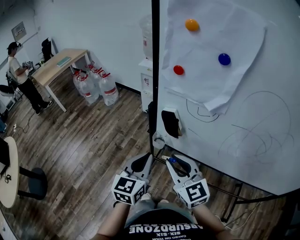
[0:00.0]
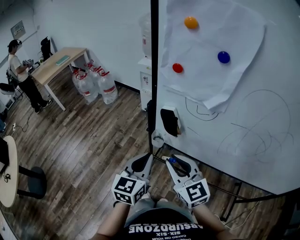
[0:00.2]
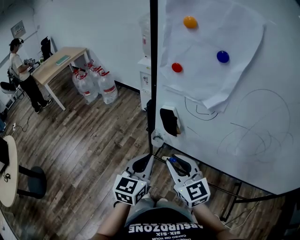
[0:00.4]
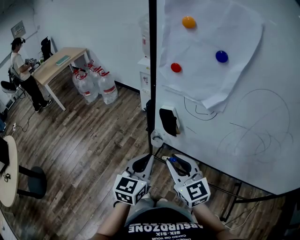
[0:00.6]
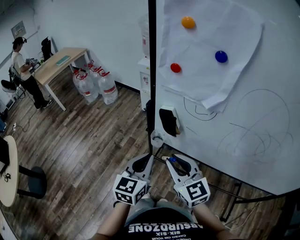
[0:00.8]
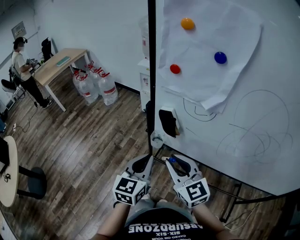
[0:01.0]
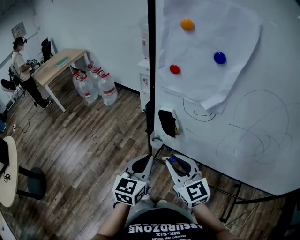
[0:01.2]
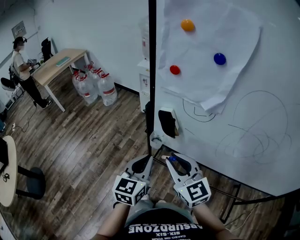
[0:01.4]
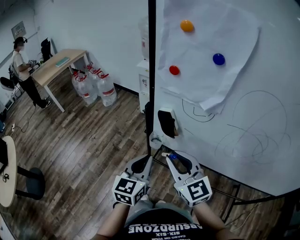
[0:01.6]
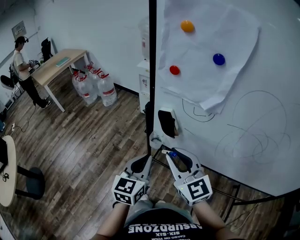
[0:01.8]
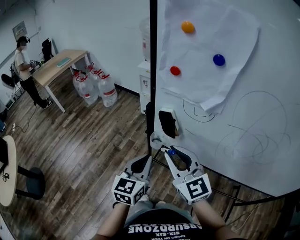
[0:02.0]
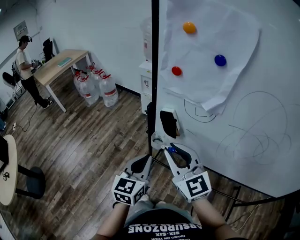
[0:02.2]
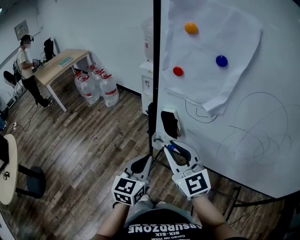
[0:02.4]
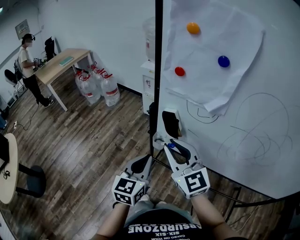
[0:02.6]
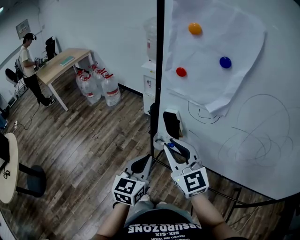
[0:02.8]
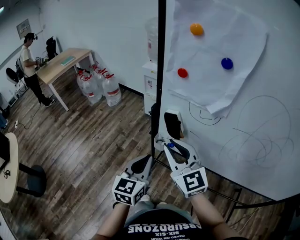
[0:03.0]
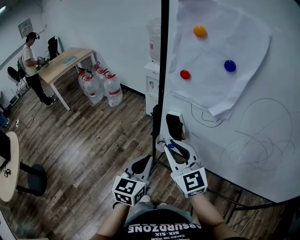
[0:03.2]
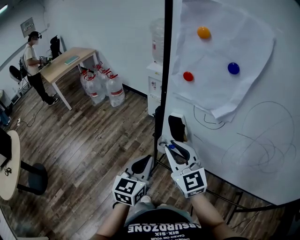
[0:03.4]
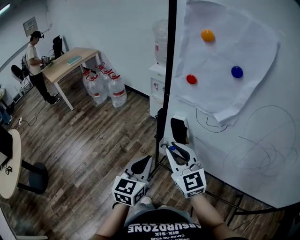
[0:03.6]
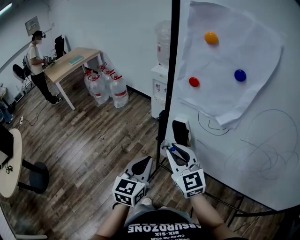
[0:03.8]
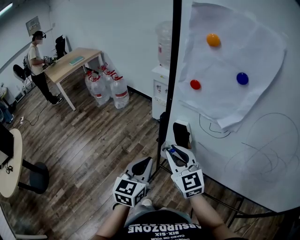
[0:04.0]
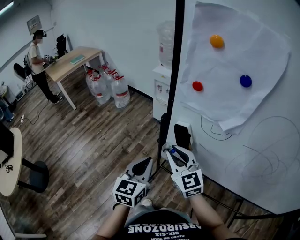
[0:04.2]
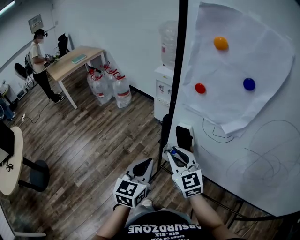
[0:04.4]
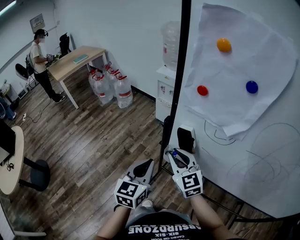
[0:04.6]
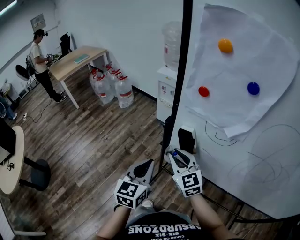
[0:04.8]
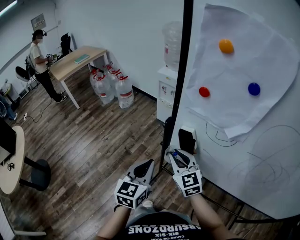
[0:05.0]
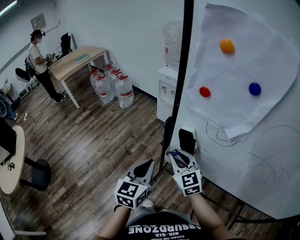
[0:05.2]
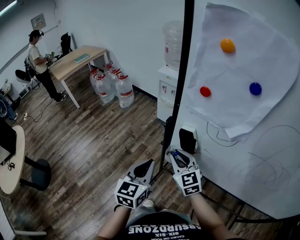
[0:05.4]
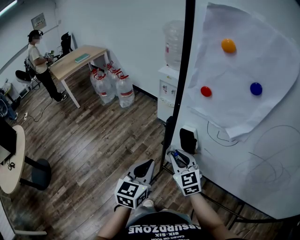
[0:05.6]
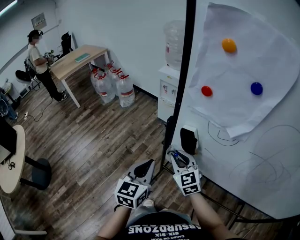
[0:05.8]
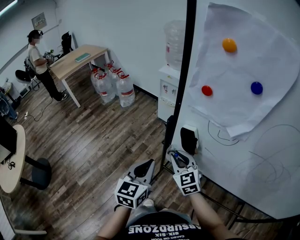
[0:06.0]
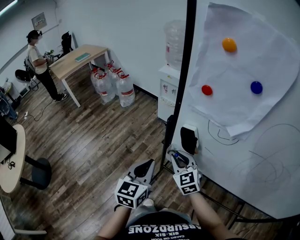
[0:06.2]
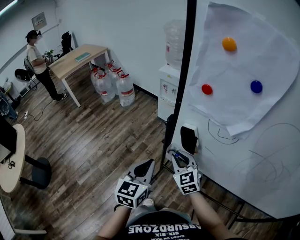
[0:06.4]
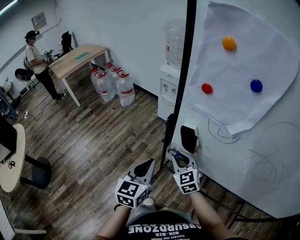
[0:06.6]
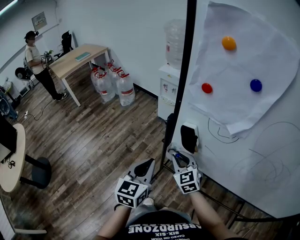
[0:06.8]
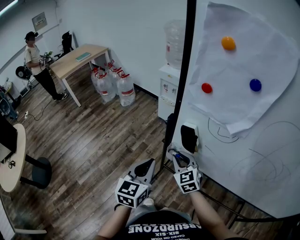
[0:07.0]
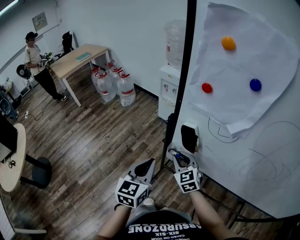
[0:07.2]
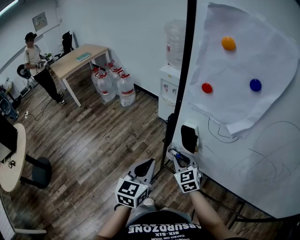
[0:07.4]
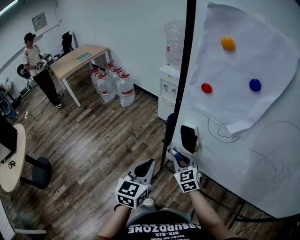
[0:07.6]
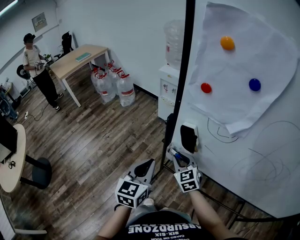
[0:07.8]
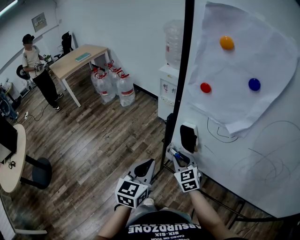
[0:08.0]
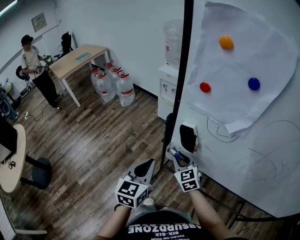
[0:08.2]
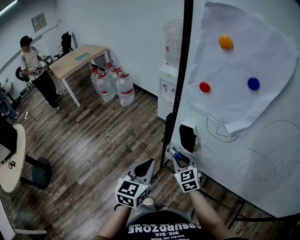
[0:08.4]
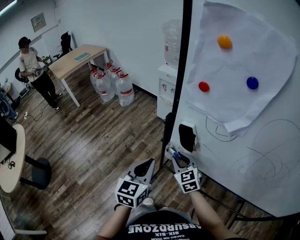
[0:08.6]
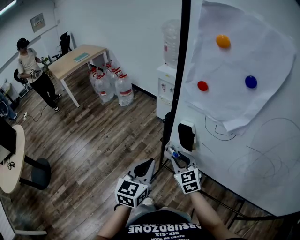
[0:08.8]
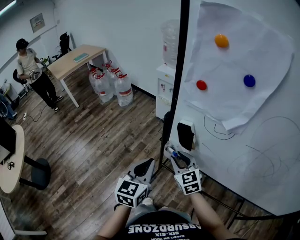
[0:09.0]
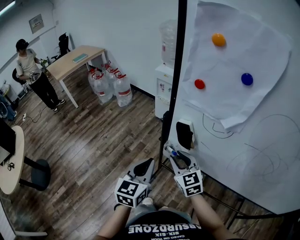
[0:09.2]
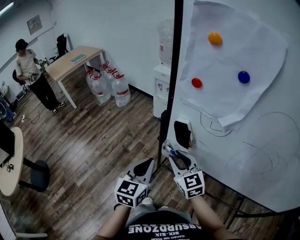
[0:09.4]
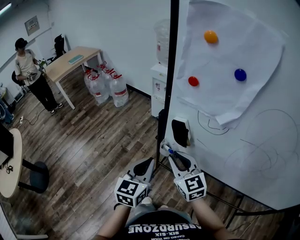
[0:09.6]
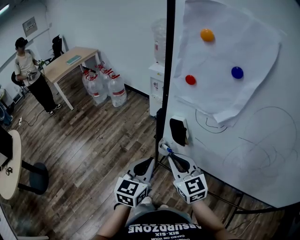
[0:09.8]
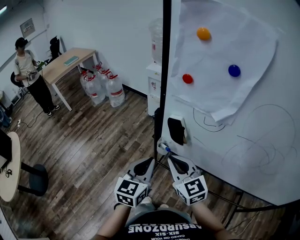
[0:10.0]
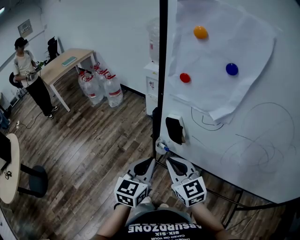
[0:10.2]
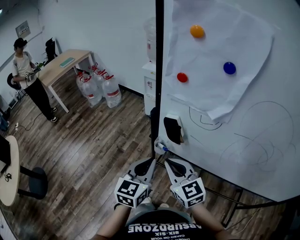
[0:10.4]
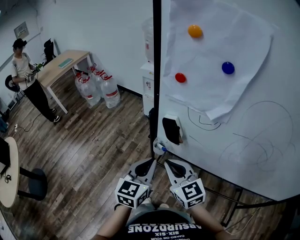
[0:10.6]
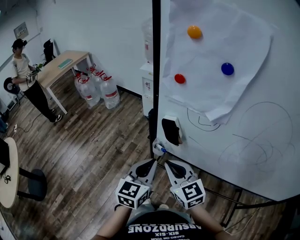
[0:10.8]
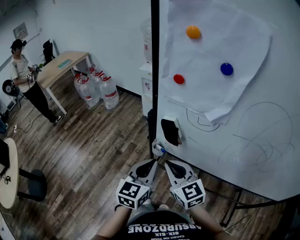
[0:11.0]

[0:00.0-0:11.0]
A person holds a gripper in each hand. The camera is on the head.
0:00.0 to 0:01.6: There are only small adjustments of the grippers.
0:01.6 to 0:03.2: The right gripper changes place by roughly 5 cm.
0:03.2 to 0:04.8: The left gripper shifts by roughly 5 cm. The right gripper is displaced downward and forward by approximately 10 cm.
0:04.8 to 0:06.2: The right gripper moves downward, some 5 cm.
0:06.2 to 0:07.8: The grippers move only a little.
0:07.8 to 0:09.4: The right gripper shifts roughly 10 cm upward.
0:09.4 to 0:11.0: The right gripper shifts by about 5 cm, and closes.

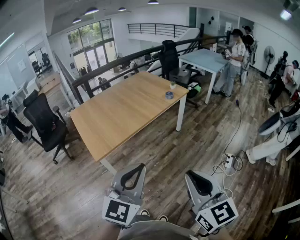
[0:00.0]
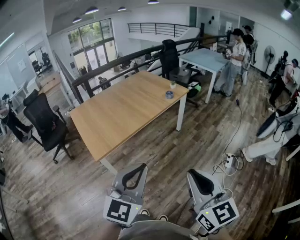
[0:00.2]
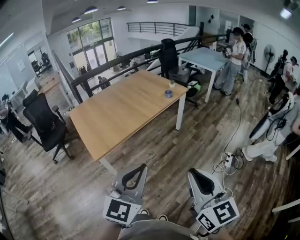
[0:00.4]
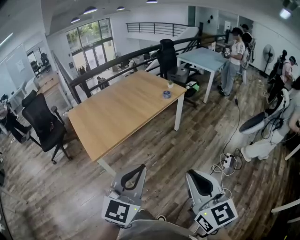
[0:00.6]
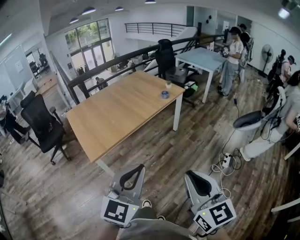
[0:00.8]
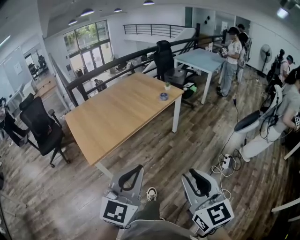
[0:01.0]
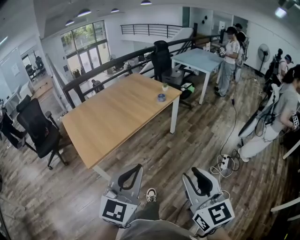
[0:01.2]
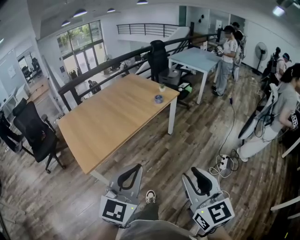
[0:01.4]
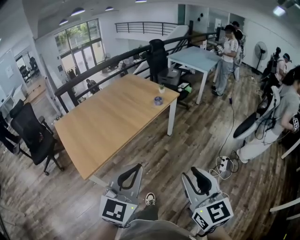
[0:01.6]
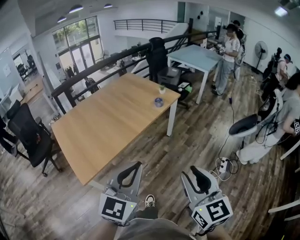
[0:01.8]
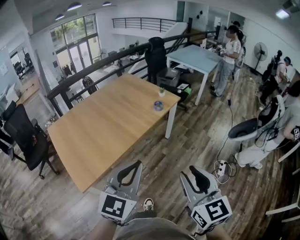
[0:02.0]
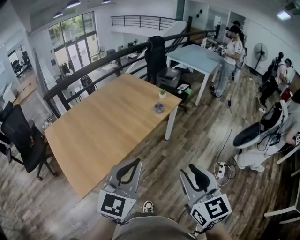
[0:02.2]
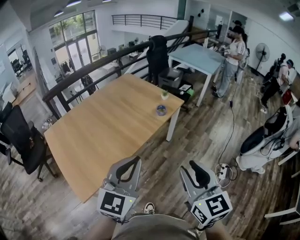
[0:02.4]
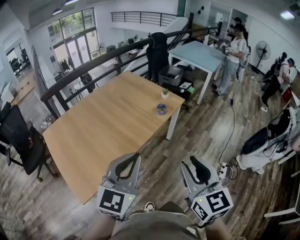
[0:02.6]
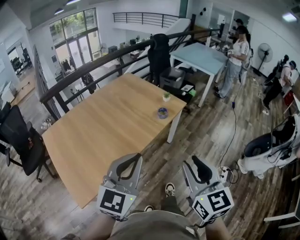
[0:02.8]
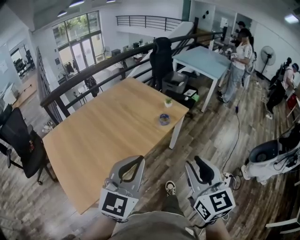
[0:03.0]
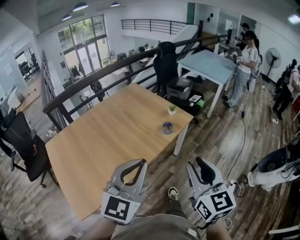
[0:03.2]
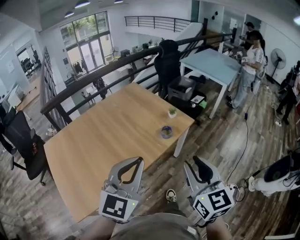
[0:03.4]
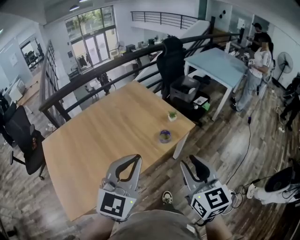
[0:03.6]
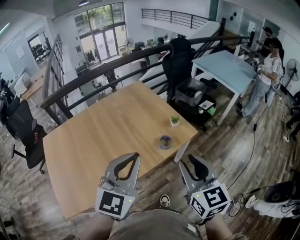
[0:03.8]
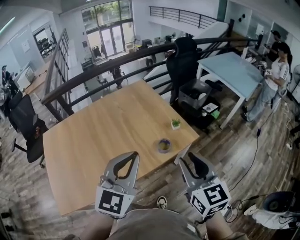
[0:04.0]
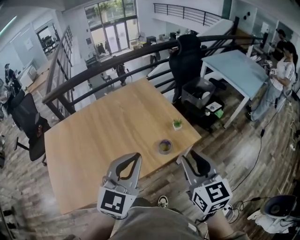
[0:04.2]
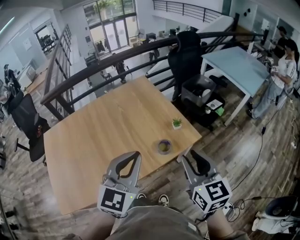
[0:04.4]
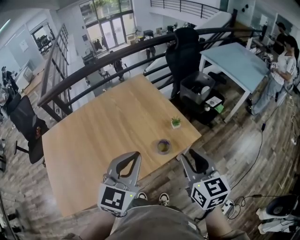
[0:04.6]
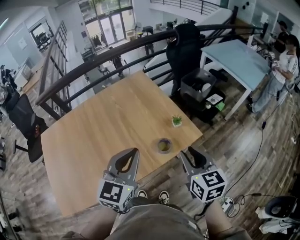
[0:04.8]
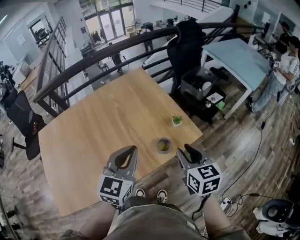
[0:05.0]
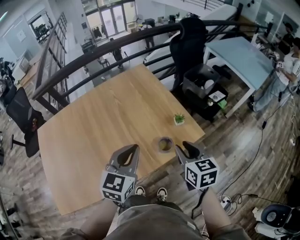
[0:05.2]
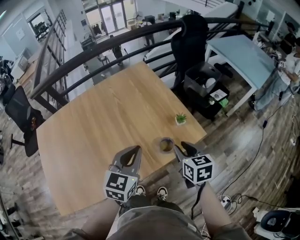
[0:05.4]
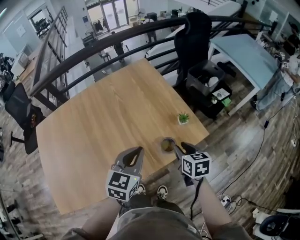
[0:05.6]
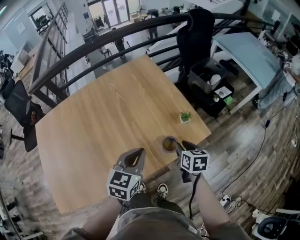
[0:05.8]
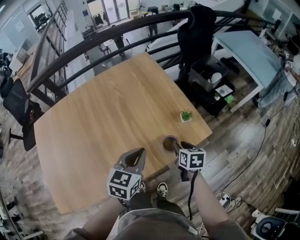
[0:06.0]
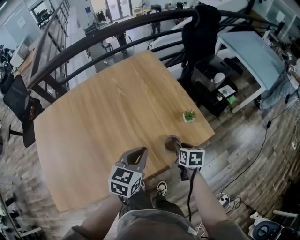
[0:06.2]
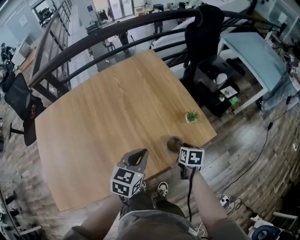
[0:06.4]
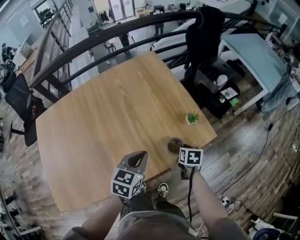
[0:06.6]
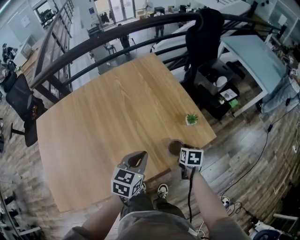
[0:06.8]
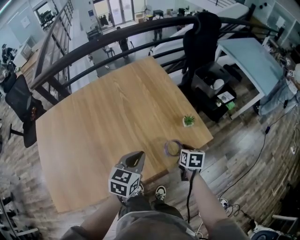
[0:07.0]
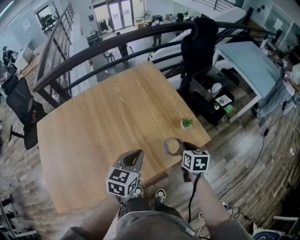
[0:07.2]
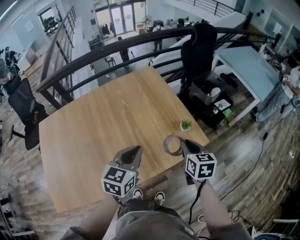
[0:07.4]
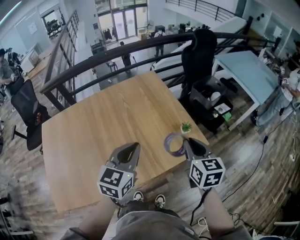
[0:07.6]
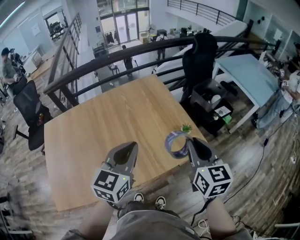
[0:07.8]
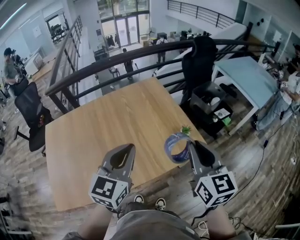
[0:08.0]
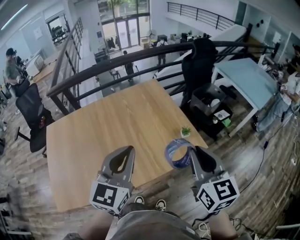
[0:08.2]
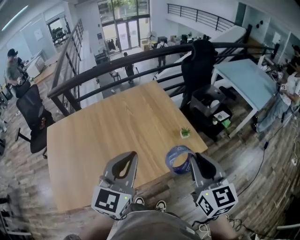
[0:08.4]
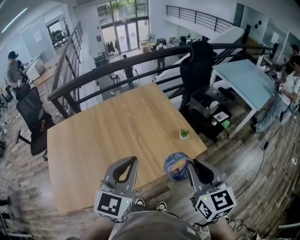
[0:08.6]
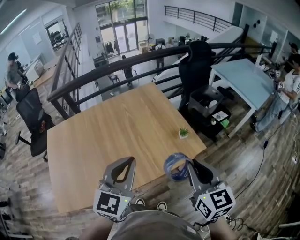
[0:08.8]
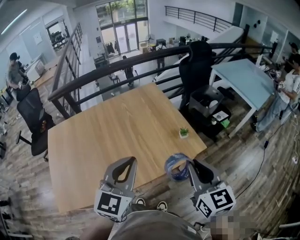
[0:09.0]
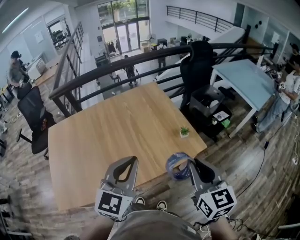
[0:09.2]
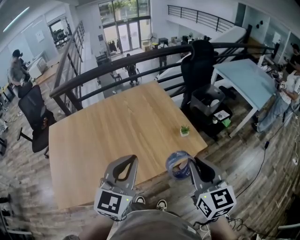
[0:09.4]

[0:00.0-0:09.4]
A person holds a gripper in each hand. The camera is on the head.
0:00.0 to 0:01.6: The two grippers go approximately 15 cm forward.
0:01.6 to 0:03.2: Both grippers move forward, about 40 cm.
0:03.2 to 0:04.8: Both grippers move forward, some 30 cm. The right gripper changes its angle by roughly 20 degrees. The left gripper changes its angle by some 20 degrees.
0:04.8 to 0:06.2: The right gripper heads downward and forward, covering approximately 30 cm, and changes its angle by approximately 30 degrees. The left gripper heads downward and forward, covering approximately 20 cm, and changes its angle by approximately 20 degrees.
0:06.2 to 0:07.8: The right gripper heads upward, covering approximately 35 cm, and points its fingers some 40 degrees further upward. Meanwhile the left gripper travels upward by approximately 20 cm, and rotates some 20 degrees.
0:07.8 to 0:09.4: Both grippers travel together backward, roughly 10 cm.

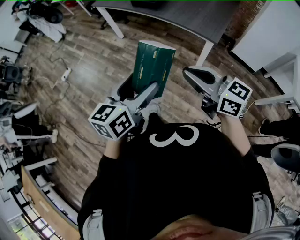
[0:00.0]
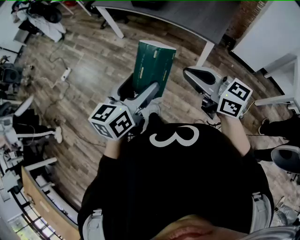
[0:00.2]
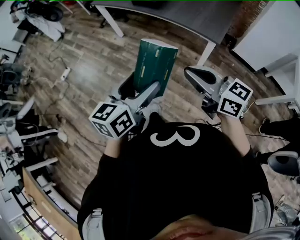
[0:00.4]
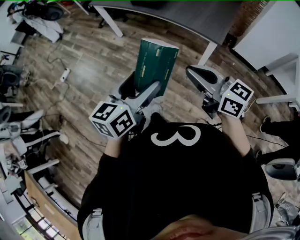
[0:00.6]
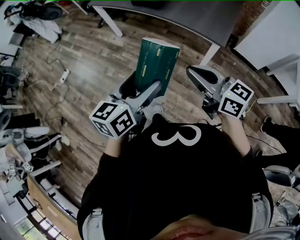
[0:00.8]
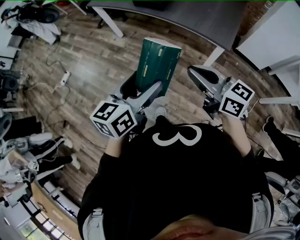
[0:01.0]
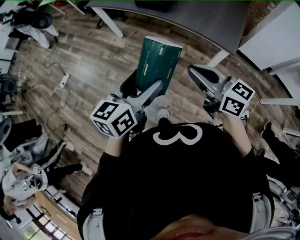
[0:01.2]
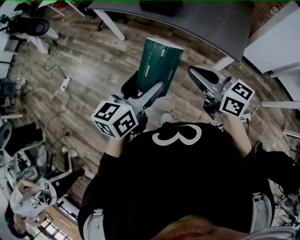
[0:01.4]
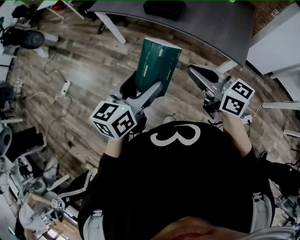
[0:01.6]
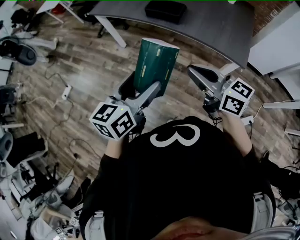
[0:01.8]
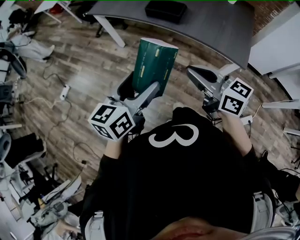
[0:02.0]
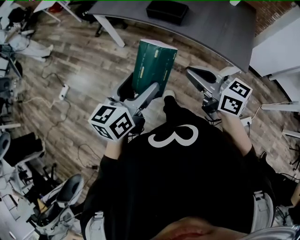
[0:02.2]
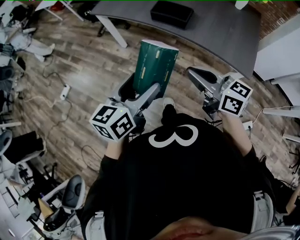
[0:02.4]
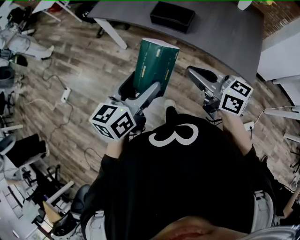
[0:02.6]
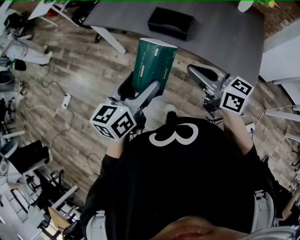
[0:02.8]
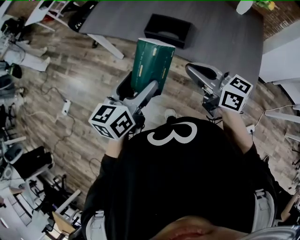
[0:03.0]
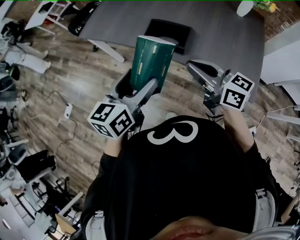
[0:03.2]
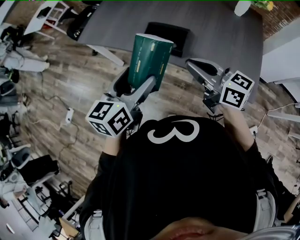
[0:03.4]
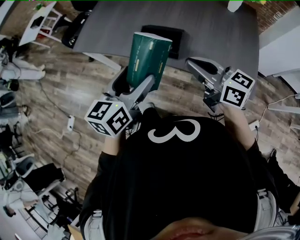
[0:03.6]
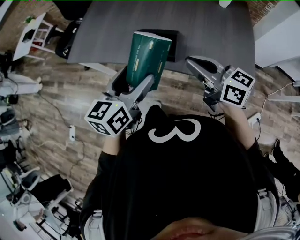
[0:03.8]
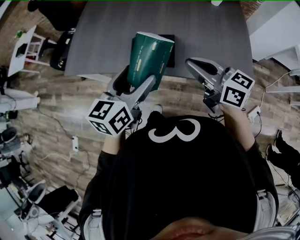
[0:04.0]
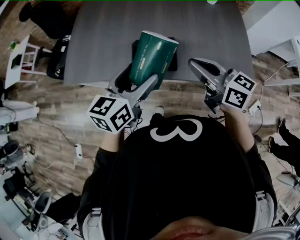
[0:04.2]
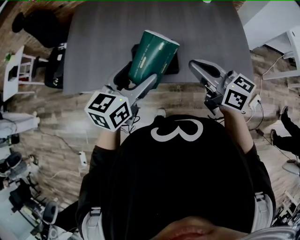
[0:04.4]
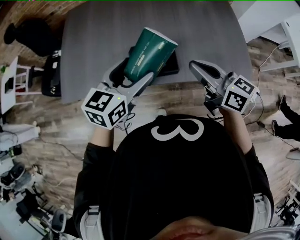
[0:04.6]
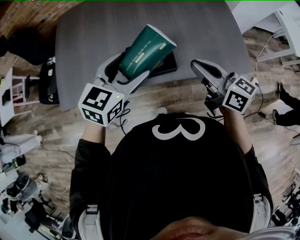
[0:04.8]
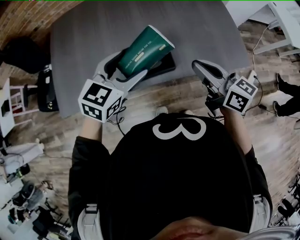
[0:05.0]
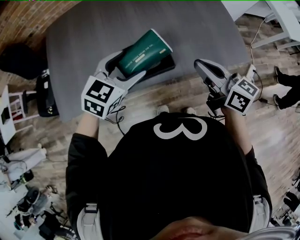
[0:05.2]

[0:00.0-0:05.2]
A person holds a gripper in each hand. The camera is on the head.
0:00.0 to 0:01.8: Both grippers move forward and to the left, approximately 30 cm.
0:01.8 to 0:03.4: The grippers both shift forward by roughly 30 cm.
0:03.4 to 0:05.2: The right gripper ends up about 5 cm from where it was, and swivels roughly 50 degrees; the left gripper ends up about 20 cm from where it was, and turns by some 70 degrees.
